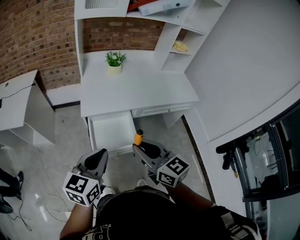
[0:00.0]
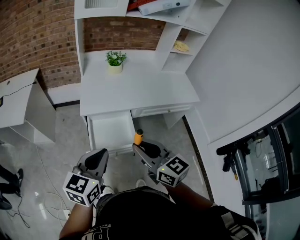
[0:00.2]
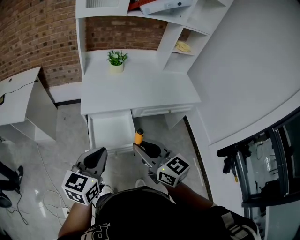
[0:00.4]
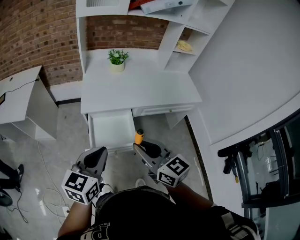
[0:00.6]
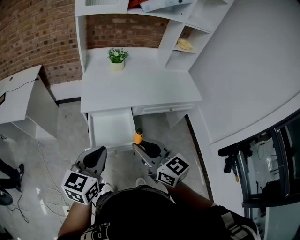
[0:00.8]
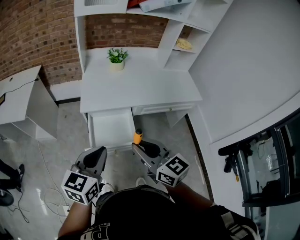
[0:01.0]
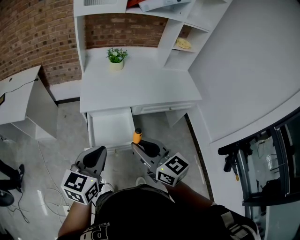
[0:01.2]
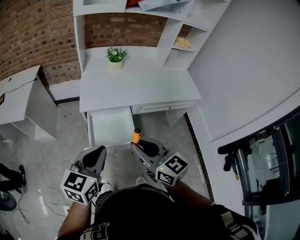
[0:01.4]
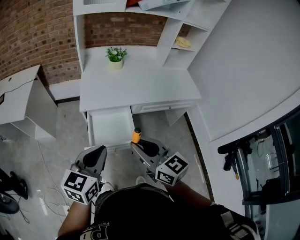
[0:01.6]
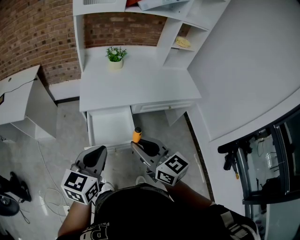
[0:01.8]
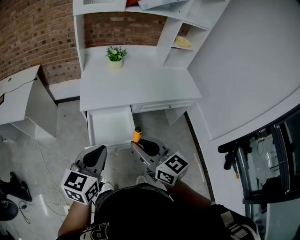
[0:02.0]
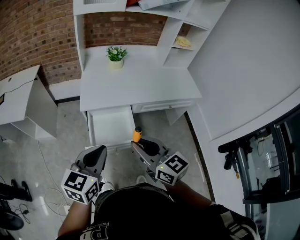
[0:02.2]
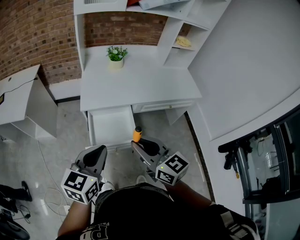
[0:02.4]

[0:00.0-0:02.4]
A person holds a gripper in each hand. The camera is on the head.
0:00.0 to 0:01.2: The grippers make only small movements.
0:01.2 to 0:02.4: Neither gripper changes place.

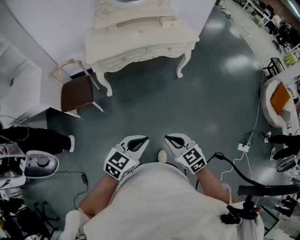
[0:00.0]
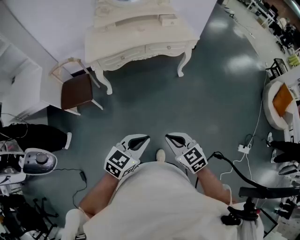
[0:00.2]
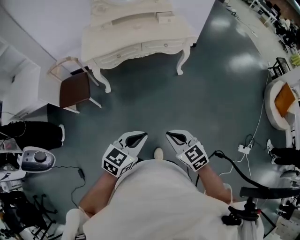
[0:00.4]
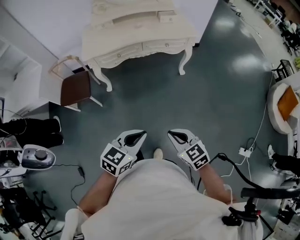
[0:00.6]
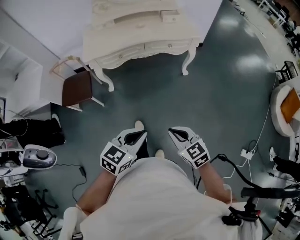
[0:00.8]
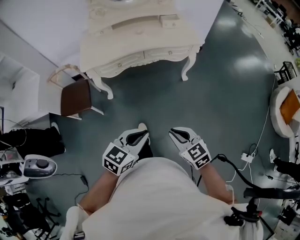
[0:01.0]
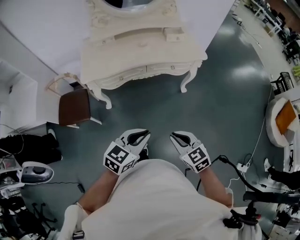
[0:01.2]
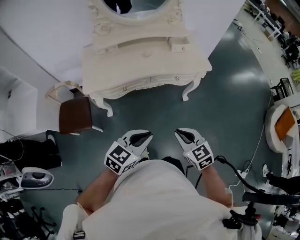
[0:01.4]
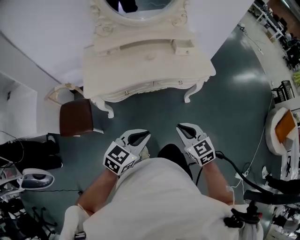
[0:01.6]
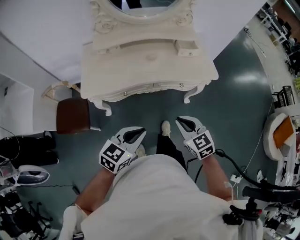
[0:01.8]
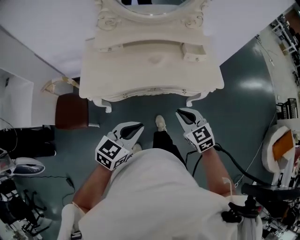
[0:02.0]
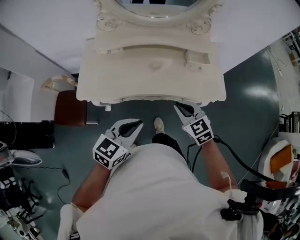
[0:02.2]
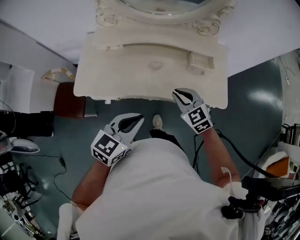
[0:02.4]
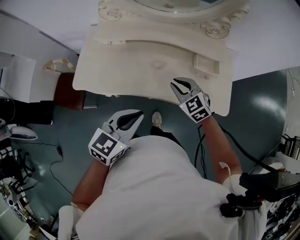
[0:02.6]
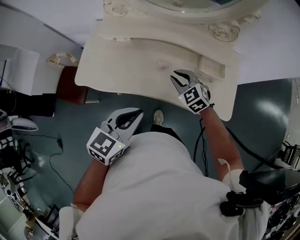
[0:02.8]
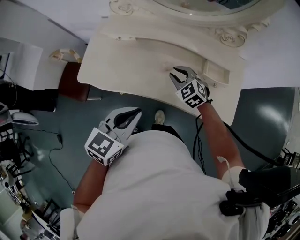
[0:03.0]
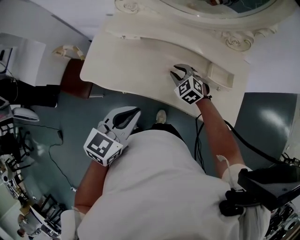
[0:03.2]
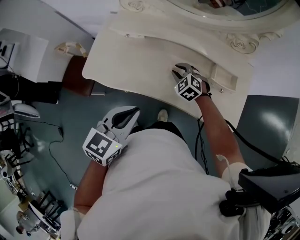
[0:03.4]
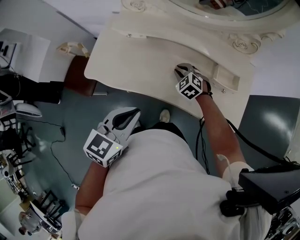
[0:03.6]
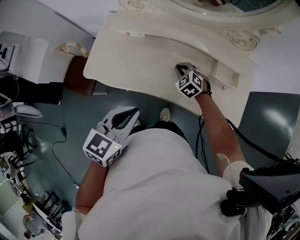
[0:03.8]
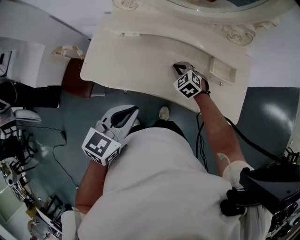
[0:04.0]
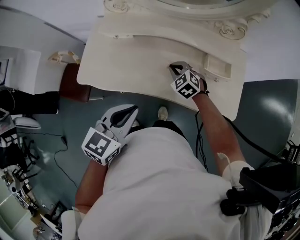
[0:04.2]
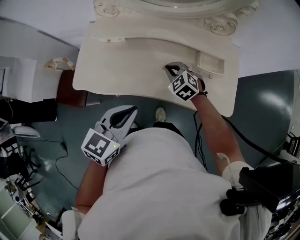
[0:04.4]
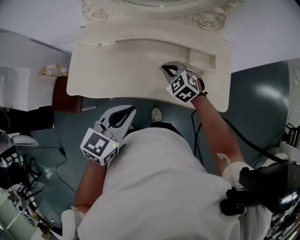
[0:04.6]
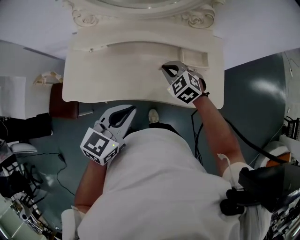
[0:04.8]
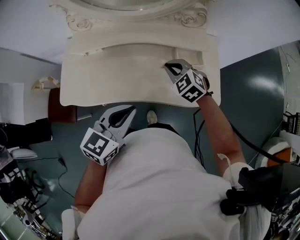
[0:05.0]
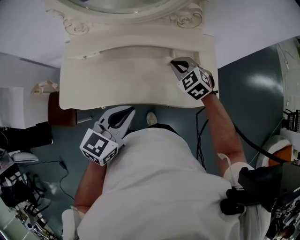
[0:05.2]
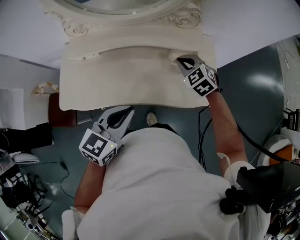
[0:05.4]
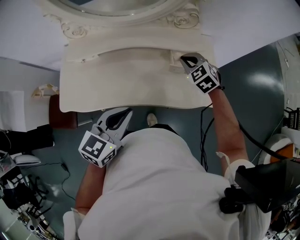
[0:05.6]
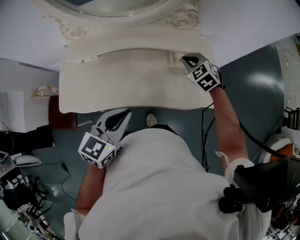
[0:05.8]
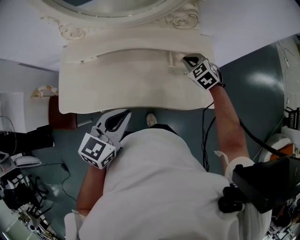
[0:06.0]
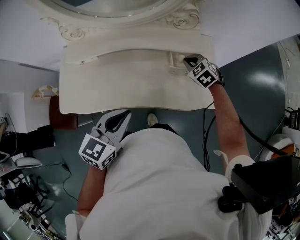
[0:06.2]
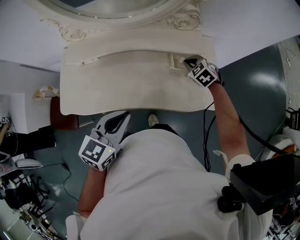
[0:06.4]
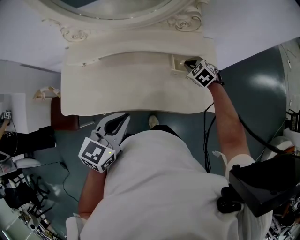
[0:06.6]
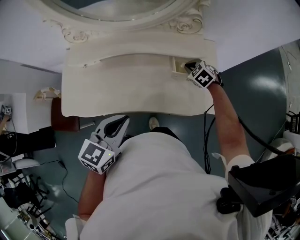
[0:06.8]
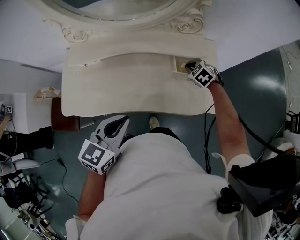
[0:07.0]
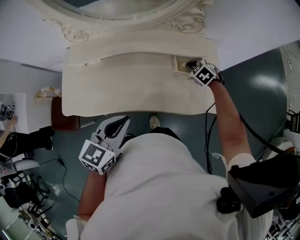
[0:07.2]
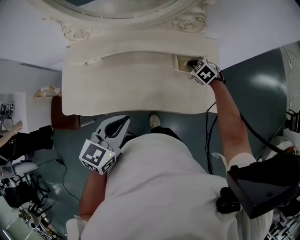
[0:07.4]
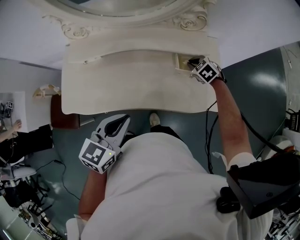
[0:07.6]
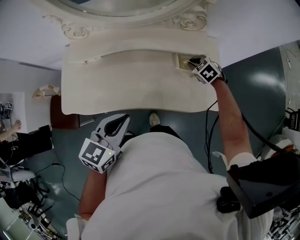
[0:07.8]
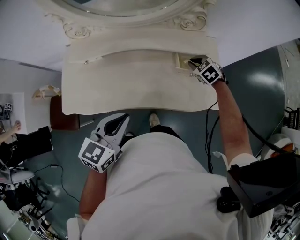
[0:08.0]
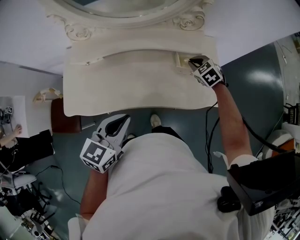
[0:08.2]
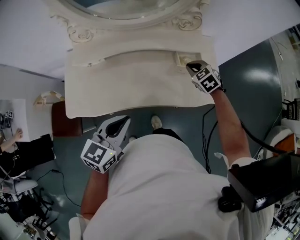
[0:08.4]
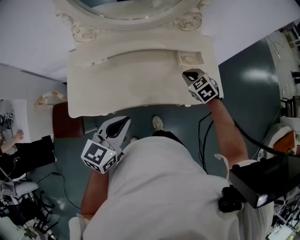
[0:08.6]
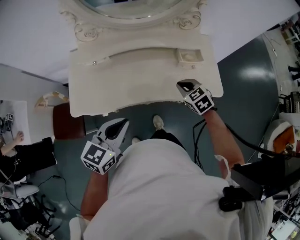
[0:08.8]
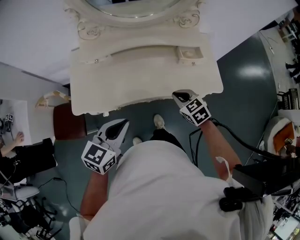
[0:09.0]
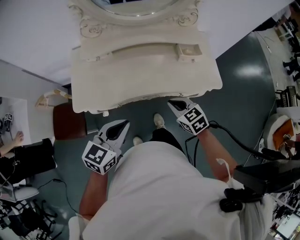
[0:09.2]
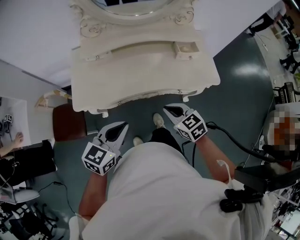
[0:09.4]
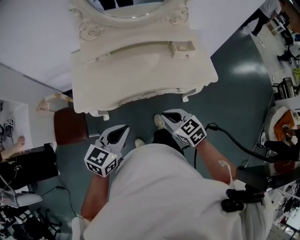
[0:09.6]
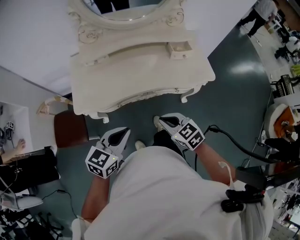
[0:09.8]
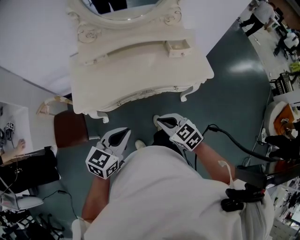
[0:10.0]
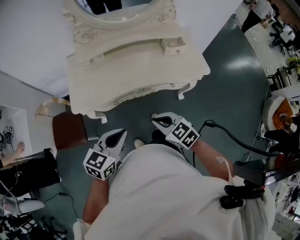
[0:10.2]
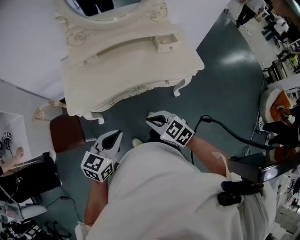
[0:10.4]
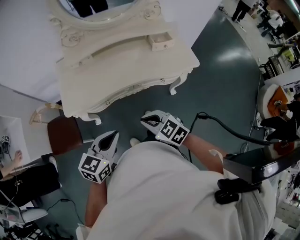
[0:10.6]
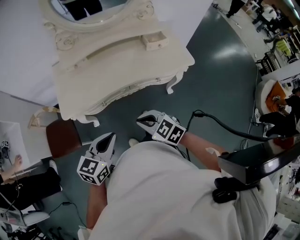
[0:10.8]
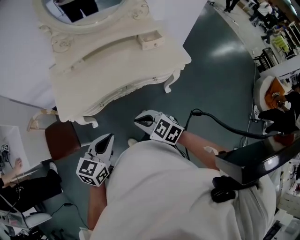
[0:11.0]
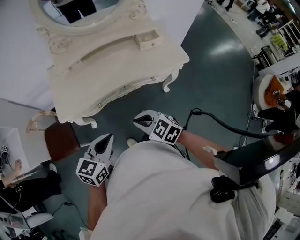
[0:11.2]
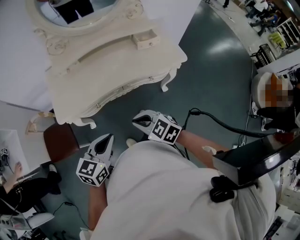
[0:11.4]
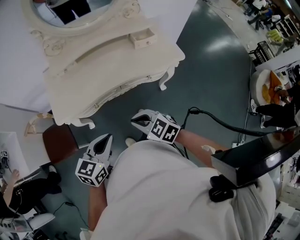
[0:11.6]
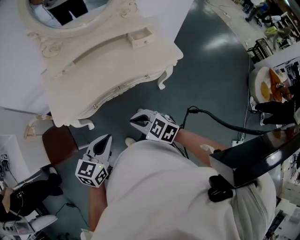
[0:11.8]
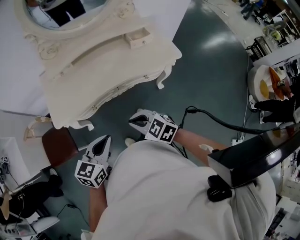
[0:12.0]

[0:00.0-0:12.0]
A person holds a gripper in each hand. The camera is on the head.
0:00.0 to 0:01.6: The grippers both shift forward by about 40 cm.
0:01.6 to 0:03.0: The left gripper changes place by some 35 cm, and changes its angle by approximately 30 degrees. Meanwhile the right gripper ends up some 50 cm from where it was, and rotates about 40 degrees.
0:03.0 to 0:04.4: The right gripper closes its fingers.
0:04.4 to 0:06.0: The left gripper shifts roughly 5 cm to the right. Meanwhile the right gripper moves to the right, about 20 cm.
0:06.0 to 0:07.6: The right gripper shifts approximately 10 cm downward.
0:07.6 to 0:09.0: The left gripper goes roughly 15 cm backward and to the left. The right gripper moves backward and to the left, roughly 30 cm, and turns by approximately 20 degrees.
0:09.0 to 0:10.4: The left gripper is displaced backward by about 15 cm; the right gripper heads backward and to the left, covering some 25 cm.
0:10.4 to 0:12.0: The grippers move only a little.

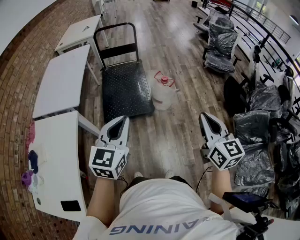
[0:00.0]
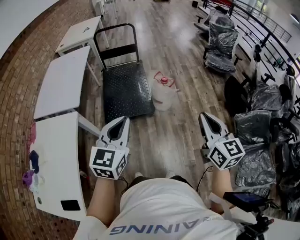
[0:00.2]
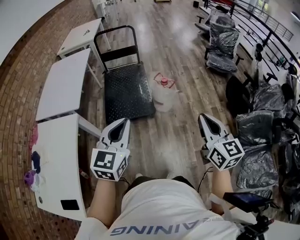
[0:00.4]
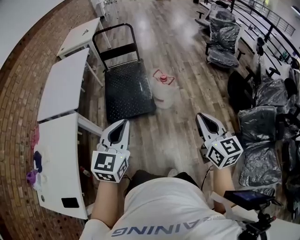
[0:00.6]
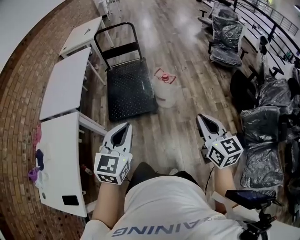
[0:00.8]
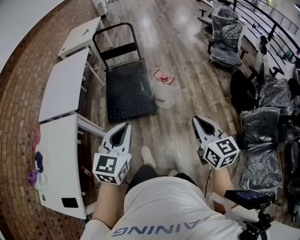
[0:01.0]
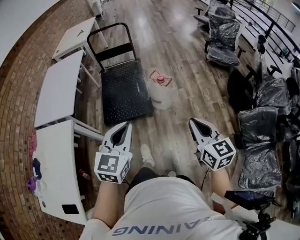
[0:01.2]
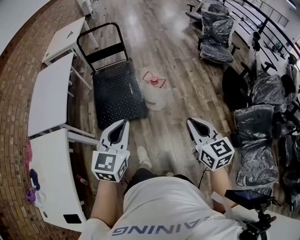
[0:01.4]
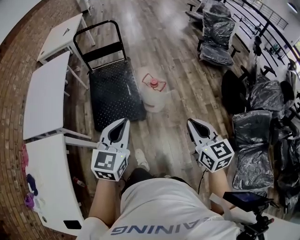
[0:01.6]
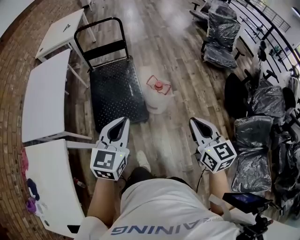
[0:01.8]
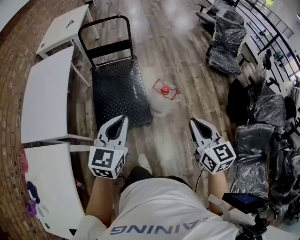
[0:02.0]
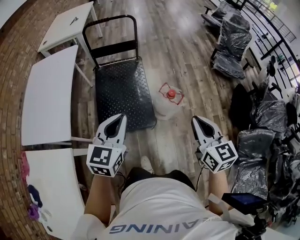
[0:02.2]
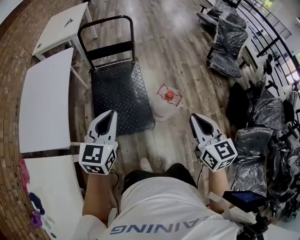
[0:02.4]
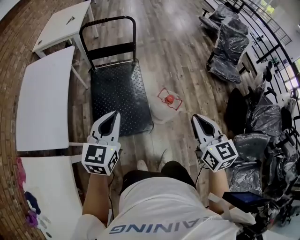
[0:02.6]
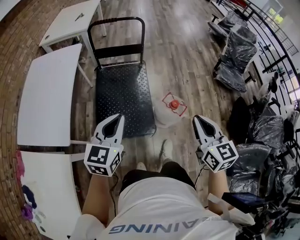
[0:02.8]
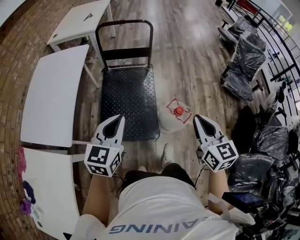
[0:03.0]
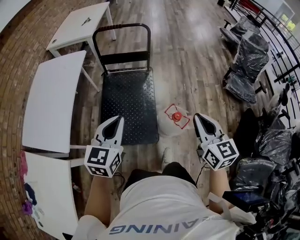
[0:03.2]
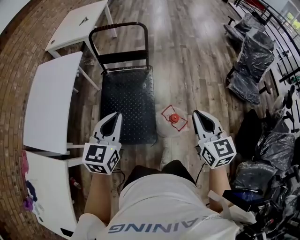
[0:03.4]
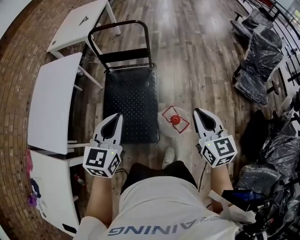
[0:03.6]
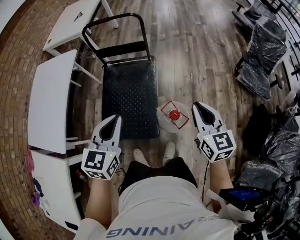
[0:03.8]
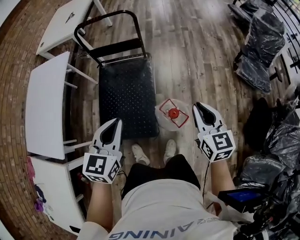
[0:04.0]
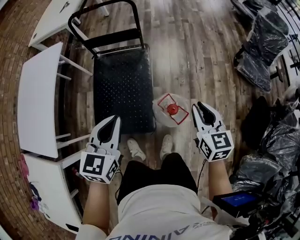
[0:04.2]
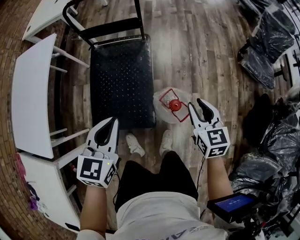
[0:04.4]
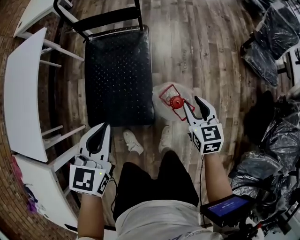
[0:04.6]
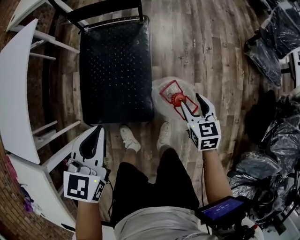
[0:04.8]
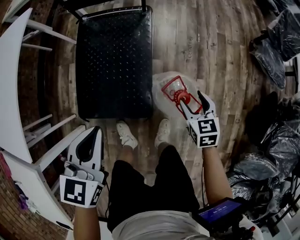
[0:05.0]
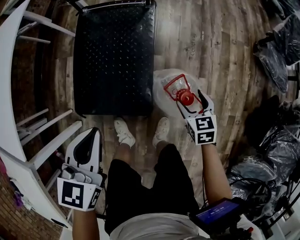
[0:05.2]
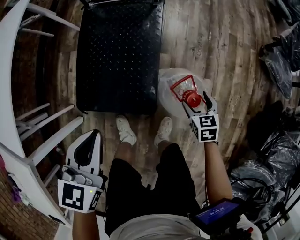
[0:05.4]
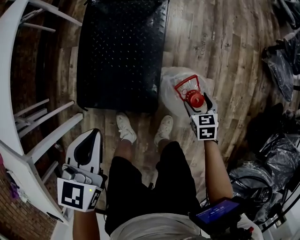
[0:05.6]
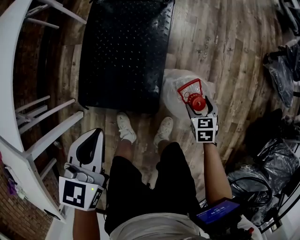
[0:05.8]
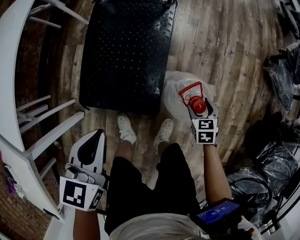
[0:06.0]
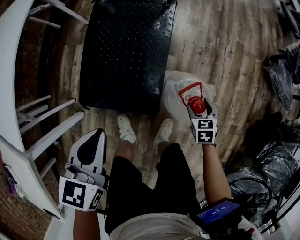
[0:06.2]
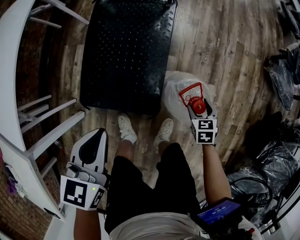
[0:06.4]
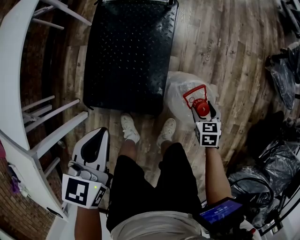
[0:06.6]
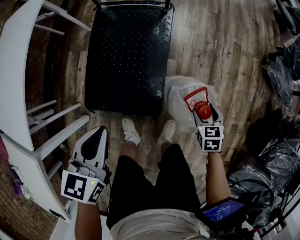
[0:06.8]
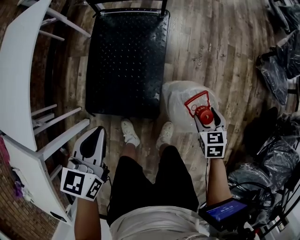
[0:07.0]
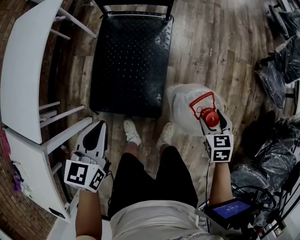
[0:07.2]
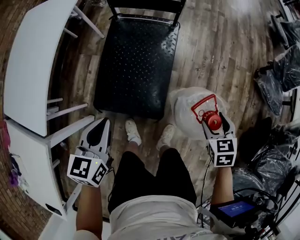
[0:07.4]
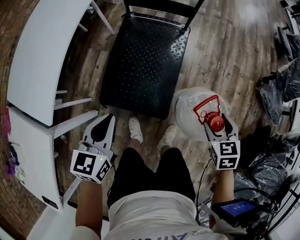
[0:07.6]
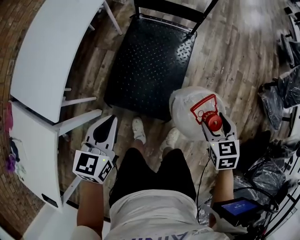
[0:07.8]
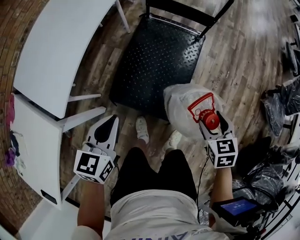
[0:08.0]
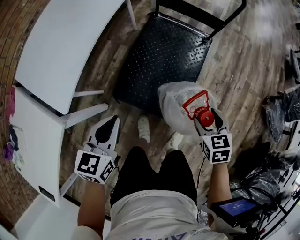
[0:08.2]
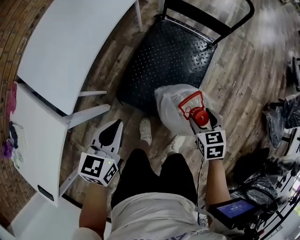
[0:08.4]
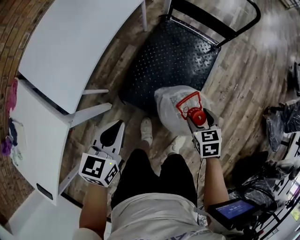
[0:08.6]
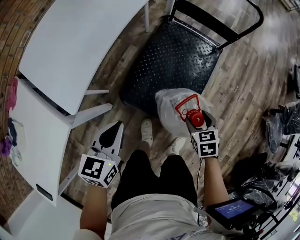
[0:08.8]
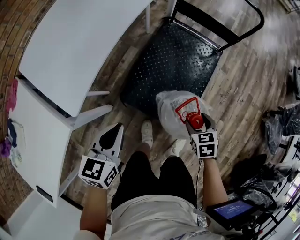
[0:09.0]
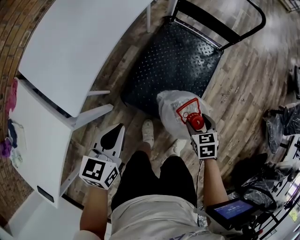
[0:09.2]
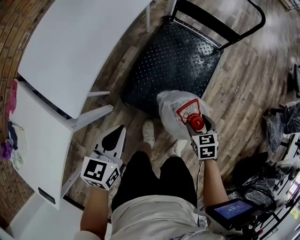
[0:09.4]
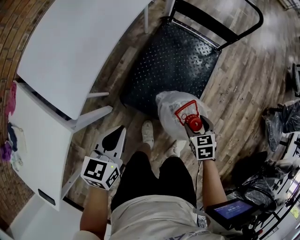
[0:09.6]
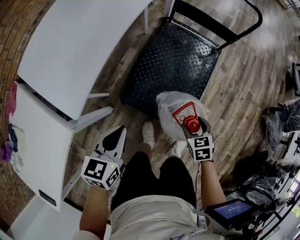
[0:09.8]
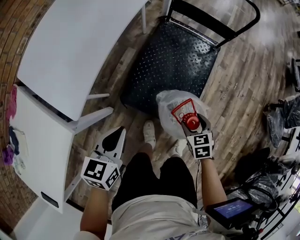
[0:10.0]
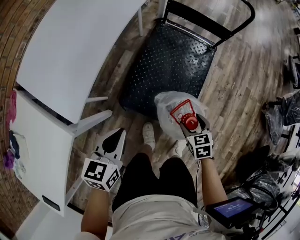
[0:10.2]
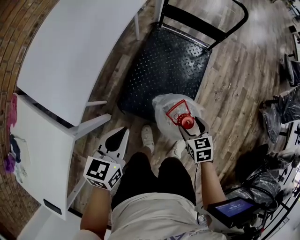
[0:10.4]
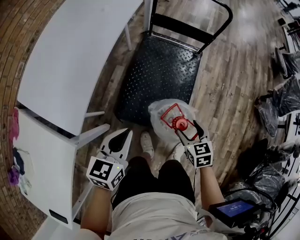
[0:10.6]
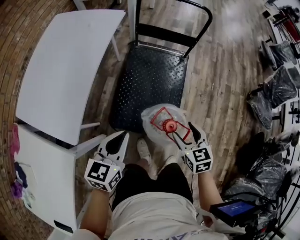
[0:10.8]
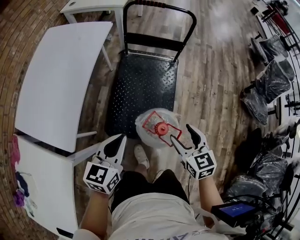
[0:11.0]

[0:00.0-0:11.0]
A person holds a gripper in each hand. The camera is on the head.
0:00.0 to 0:01.6: The right gripper travels forward and downward by some 15 cm, while the left gripper heads forward and to the right, covering roughly 20 cm.
0:01.6 to 0:03.2: The right gripper goes about 35 cm forward. The left gripper moves forward and to the left, roughly 30 cm.
0:03.2 to 0:04.8: The right gripper travels downward by about 35 cm, changes its angle by roughly 30 degrees, and opens up. The left gripper goes some 20 cm downward and forward.
0:04.8 to 0:06.2: The right gripper moves downward, roughly 20 cm, and changes its angle by about 20 degrees, while the left gripper goes approximately 10 cm downward.
0:06.2 to 0:07.8: The right gripper goes some 30 cm upward. The left gripper shifts some 15 cm to the left and upward.
0:07.8 to 0:09.4: The right gripper travels to the left and downward by some 20 cm, while the left gripper moves to the left, about 15 cm.
0:09.4 to 0:11.0: The right gripper heads upward, covering about 20 cm, and turns by roughly 30 degrees. The left gripper is displaced to the right and upward by approximately 15 cm, and swivels about 20 degrees.
